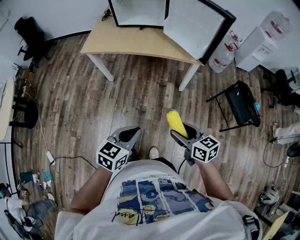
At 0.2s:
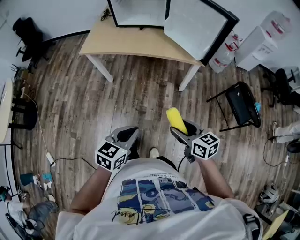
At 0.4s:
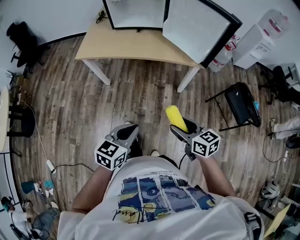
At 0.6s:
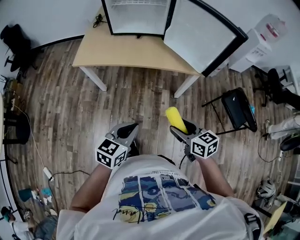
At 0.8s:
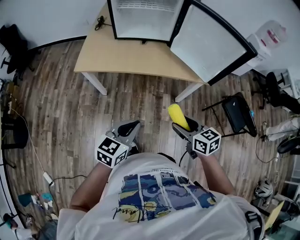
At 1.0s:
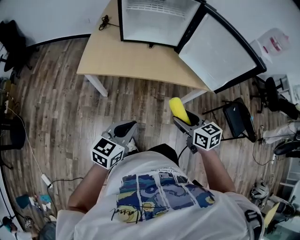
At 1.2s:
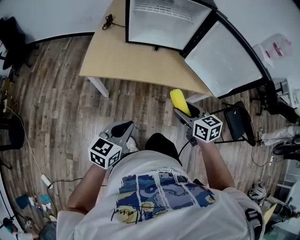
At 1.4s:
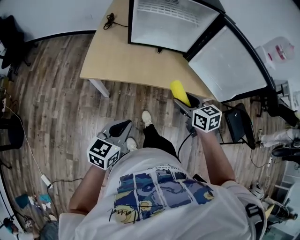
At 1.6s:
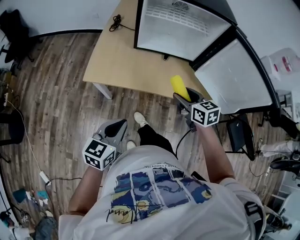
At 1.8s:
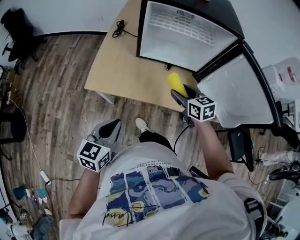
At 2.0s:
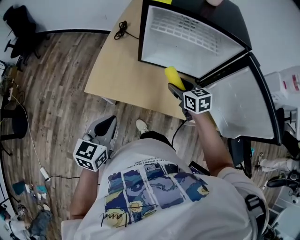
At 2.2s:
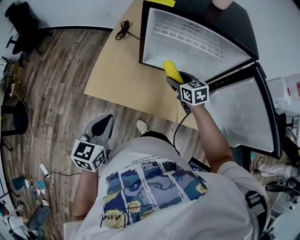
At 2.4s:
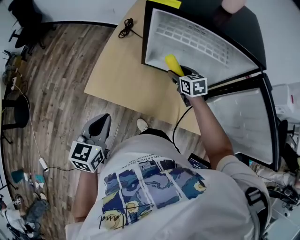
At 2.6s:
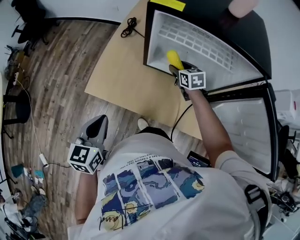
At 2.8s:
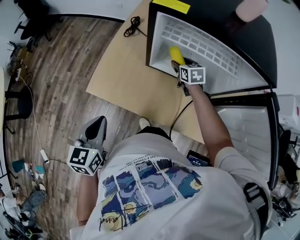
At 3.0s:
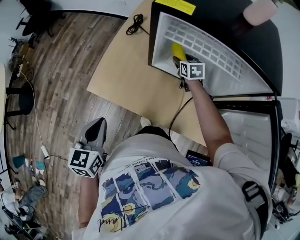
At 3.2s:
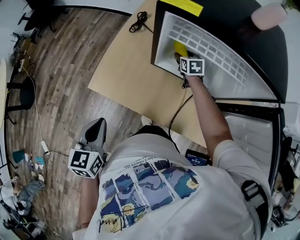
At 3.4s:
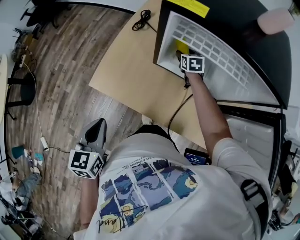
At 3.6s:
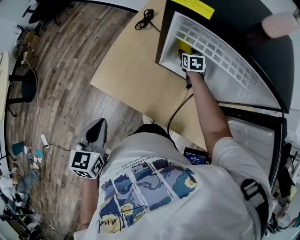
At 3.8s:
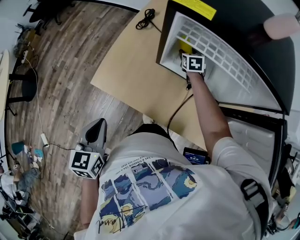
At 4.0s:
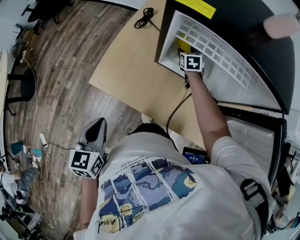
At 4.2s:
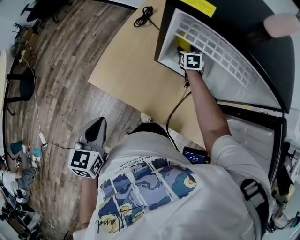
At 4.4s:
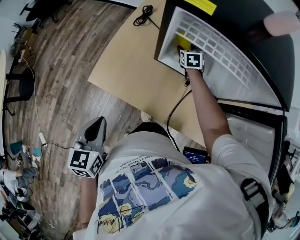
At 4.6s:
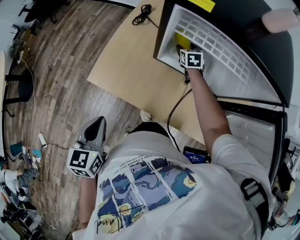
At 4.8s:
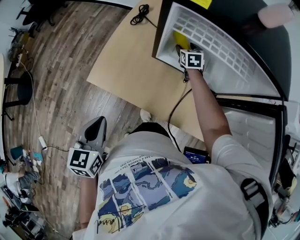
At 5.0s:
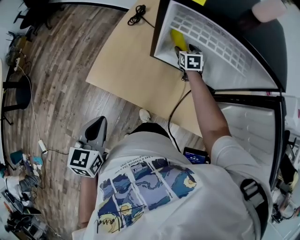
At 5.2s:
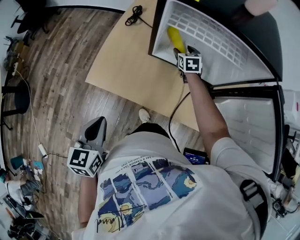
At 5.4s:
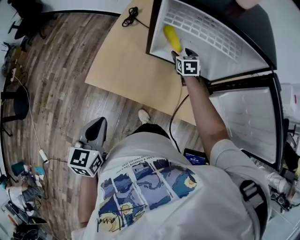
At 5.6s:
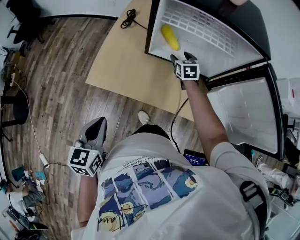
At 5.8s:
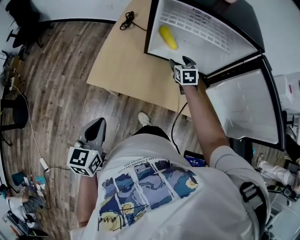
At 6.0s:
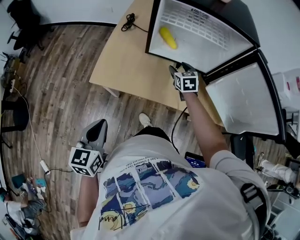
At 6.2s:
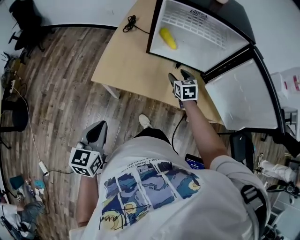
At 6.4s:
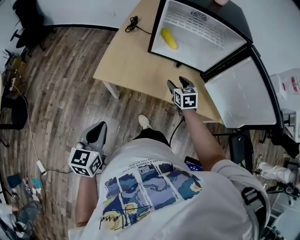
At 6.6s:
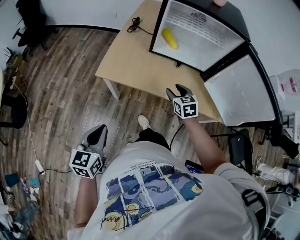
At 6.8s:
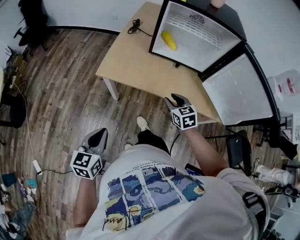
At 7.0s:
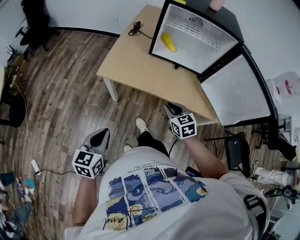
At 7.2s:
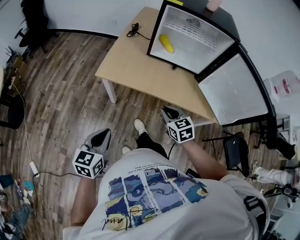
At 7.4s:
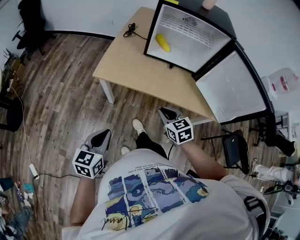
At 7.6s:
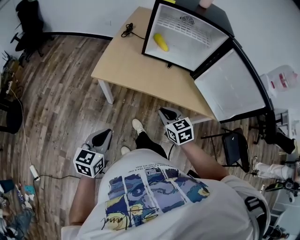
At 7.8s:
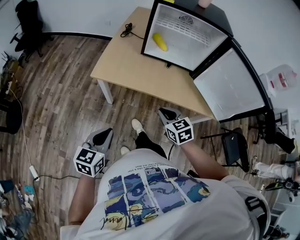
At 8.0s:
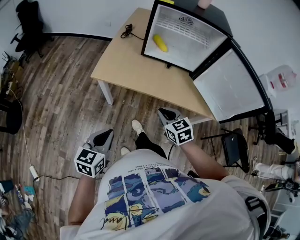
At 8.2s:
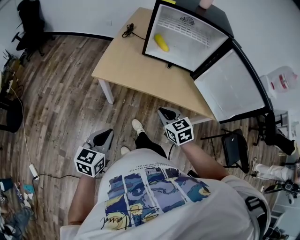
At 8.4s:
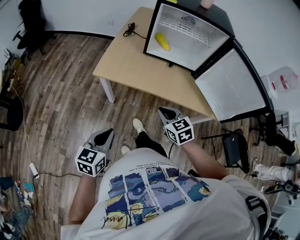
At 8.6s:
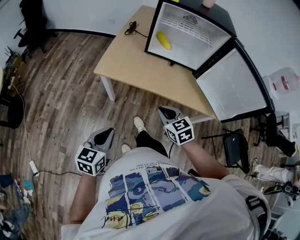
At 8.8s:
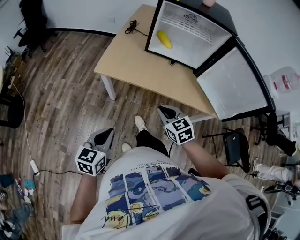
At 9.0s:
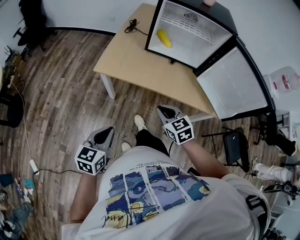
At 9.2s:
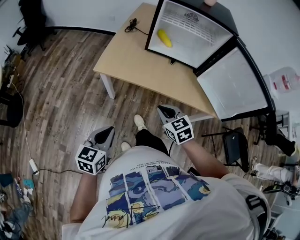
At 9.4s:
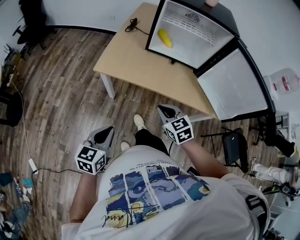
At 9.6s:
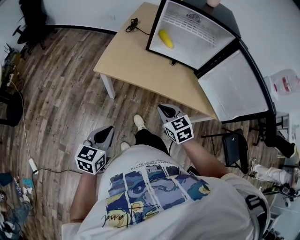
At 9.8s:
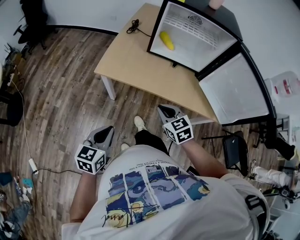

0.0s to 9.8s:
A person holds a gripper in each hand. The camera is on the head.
0.0s to 1.4s: Both grippers travel together forward and to the left, approximately 40 cm.
1.4s to 2.8s: The right gripper travels forward by some 40 cm; the left gripper goes approximately 20 cm forward, and swivels about 40 degrees.
2.8s to 4.2s: The right gripper goes roughly 10 cm forward and downward.
4.2s to 5.6s: The left gripper shifts about 5 cm backward. Meanwhile the right gripper moves backward and upward, some 15 cm.
5.6s to 7.0s: The right gripper moves backward, approximately 35 cm, and closes its fingers; the left gripper is displaced backward by about 20 cm.
7.0s to 8.4s: The right gripper goes about 5 cm backward.
8.4s to 9.8s: There are only small adjustments of the grippers.

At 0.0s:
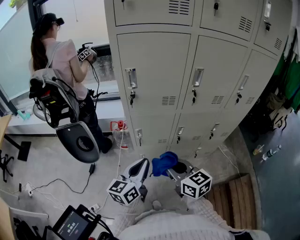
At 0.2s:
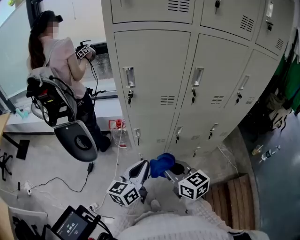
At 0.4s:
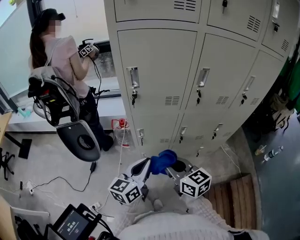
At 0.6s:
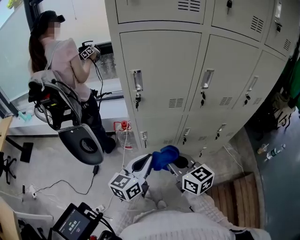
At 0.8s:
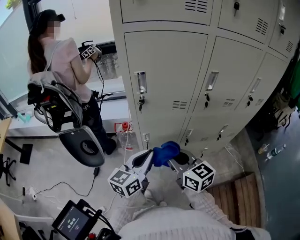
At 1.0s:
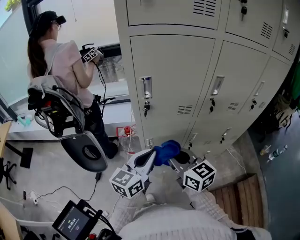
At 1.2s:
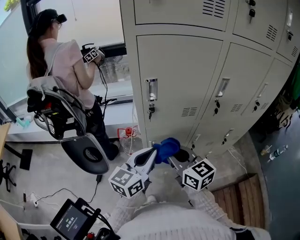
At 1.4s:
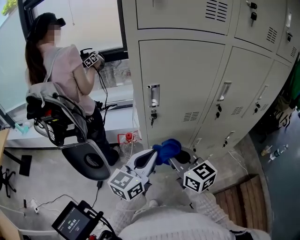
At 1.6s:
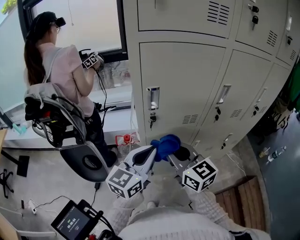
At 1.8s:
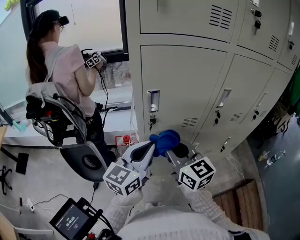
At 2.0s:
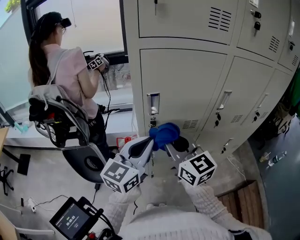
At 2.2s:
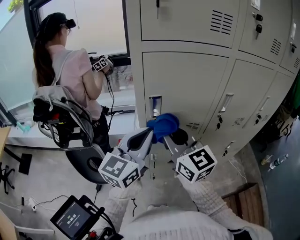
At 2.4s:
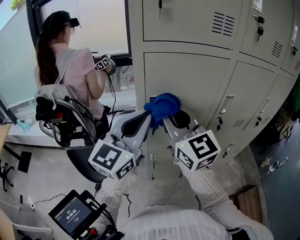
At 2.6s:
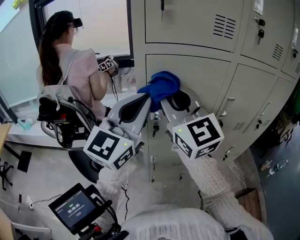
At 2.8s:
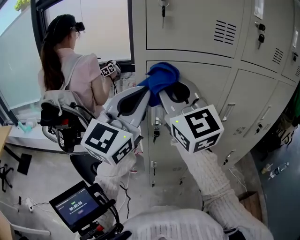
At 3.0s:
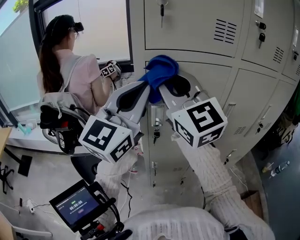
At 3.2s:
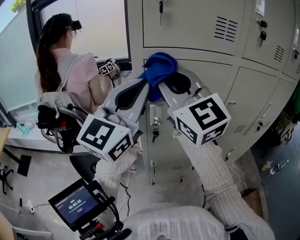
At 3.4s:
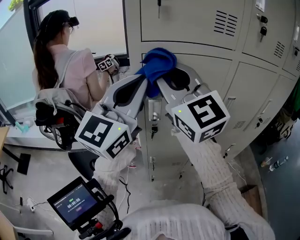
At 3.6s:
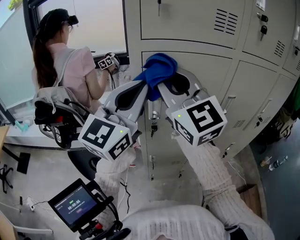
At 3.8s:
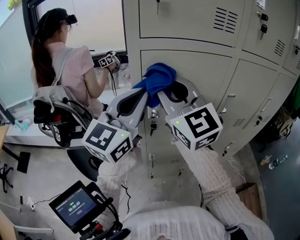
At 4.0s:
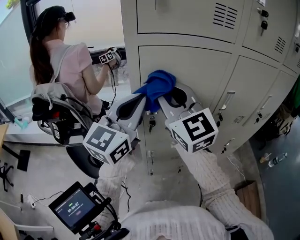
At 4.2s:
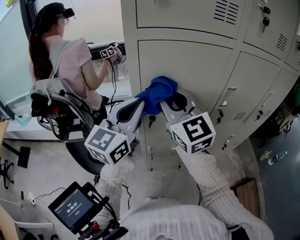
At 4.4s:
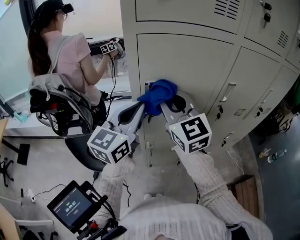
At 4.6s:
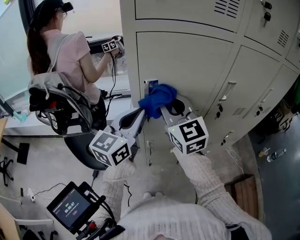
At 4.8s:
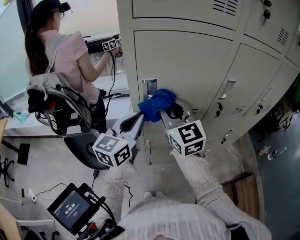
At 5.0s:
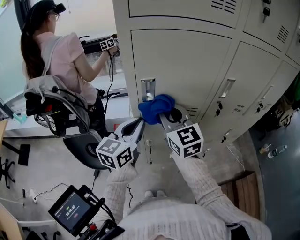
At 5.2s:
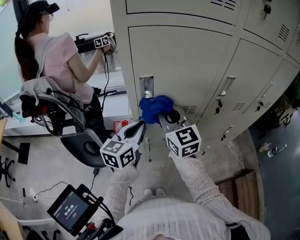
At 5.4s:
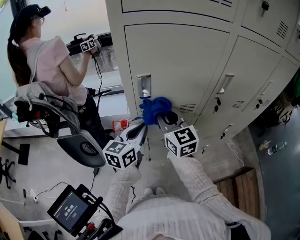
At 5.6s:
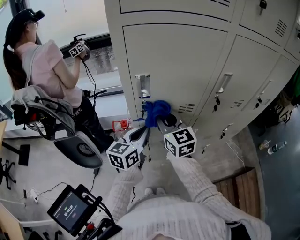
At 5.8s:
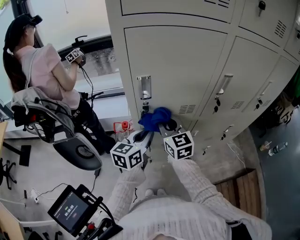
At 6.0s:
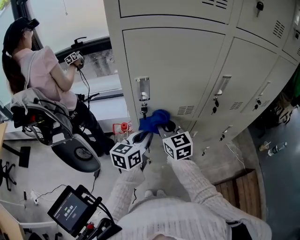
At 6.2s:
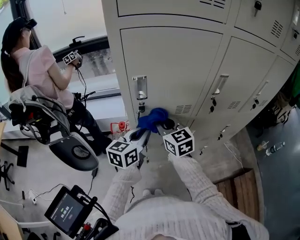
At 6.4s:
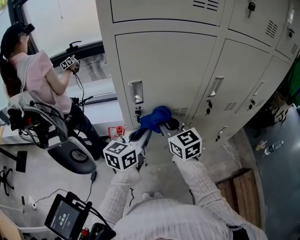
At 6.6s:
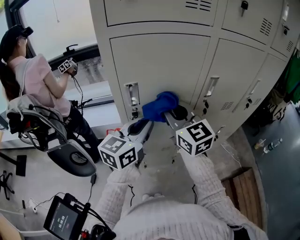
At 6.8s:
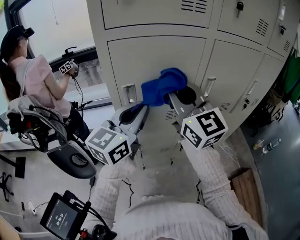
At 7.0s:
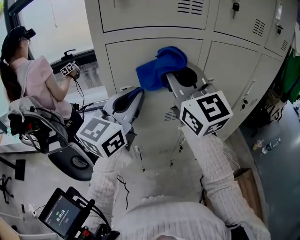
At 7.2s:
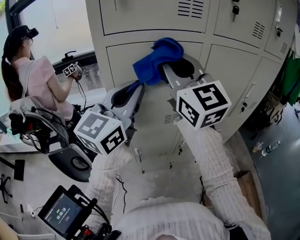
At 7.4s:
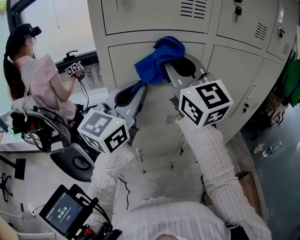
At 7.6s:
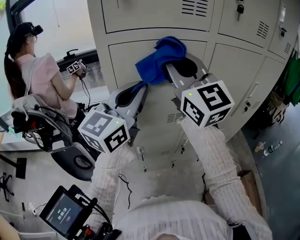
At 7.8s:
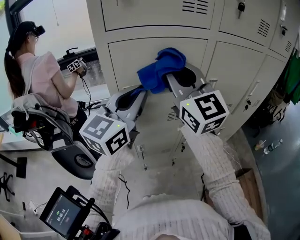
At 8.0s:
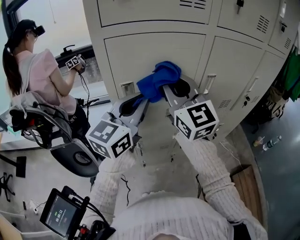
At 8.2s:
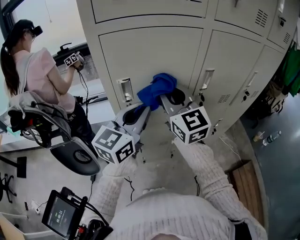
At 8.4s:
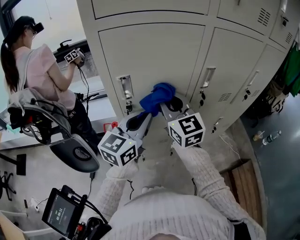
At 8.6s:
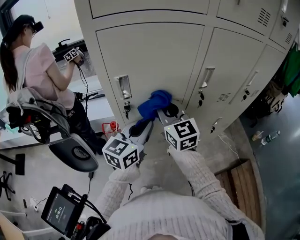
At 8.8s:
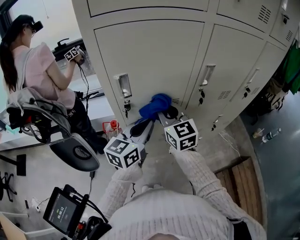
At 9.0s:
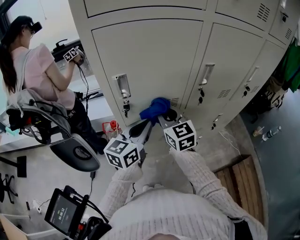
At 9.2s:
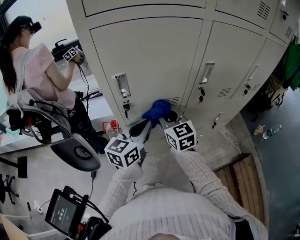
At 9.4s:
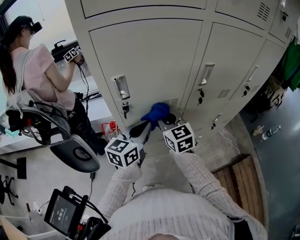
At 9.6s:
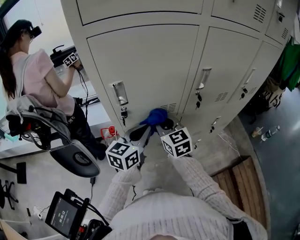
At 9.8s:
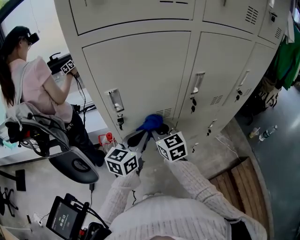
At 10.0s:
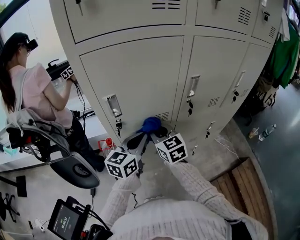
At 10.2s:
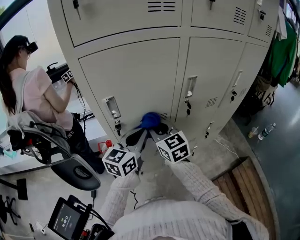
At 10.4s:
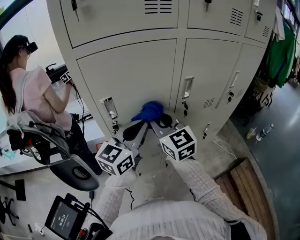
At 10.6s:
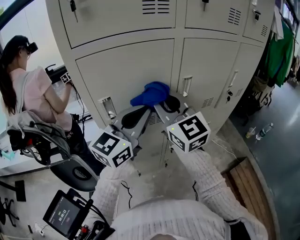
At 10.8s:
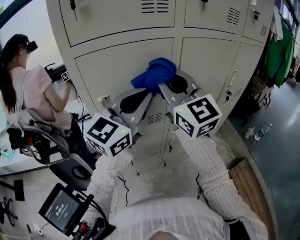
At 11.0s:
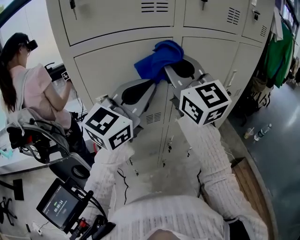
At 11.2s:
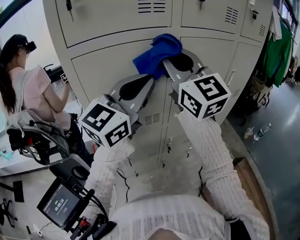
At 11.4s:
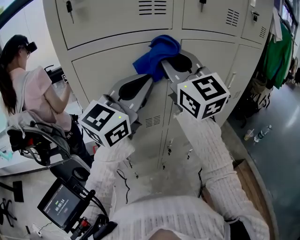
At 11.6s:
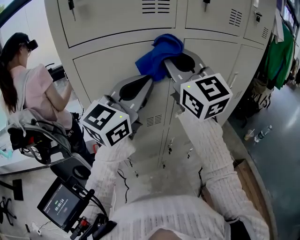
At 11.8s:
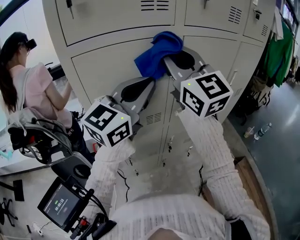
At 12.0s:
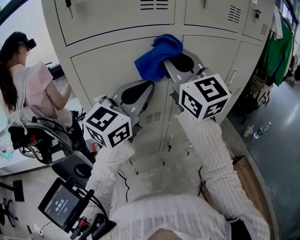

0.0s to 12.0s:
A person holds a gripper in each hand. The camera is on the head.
0.0s to 1.6s: The left gripper is displaced forward, upward and to the left by roughly 20 cm, and rotates some 20 degrees. Meanwhile the right gripper goes approximately 20 cm forward, to the left and upward.
1.6s to 3.0s: The two grippers go some 25 cm upward. The right gripper rotates some 40 degrees; the left gripper rotates roughly 30 degrees.
3.0s to 4.4s: Both grippers travel together downward, approximately 15 cm. The left gripper rotates roughly 20 degrees.
4.4s to 6.0s: Both grippers move downward, approximately 20 cm. The right gripper changes its angle by about 20 degrees. The left gripper rotates roughly 30 degrees.
6.0s to 7.6s: The two grippers go roughly 30 cm upward. The right gripper swivels some 30 degrees, while the left gripper changes its angle by about 30 degrees.
7.6s to 9.0s: Both grippers move downward, approximately 25 cm. The right gripper rotates roughly 30 degrees, while the left gripper rotates some 20 degrees.
9.0s to 10.4s: Both grippers travel together upward, approximately 10 cm.
10.4s to 12.0s: The right gripper goes roughly 20 cm upward, and rotates approximately 20 degrees, while the left gripper heads upward, covering some 10 cm.

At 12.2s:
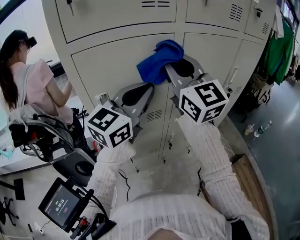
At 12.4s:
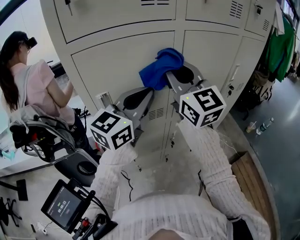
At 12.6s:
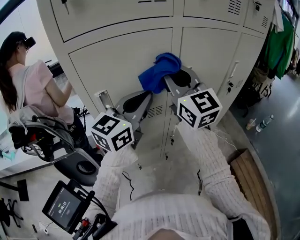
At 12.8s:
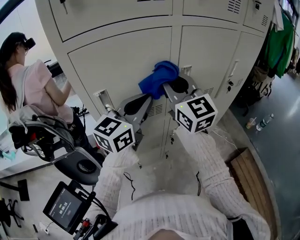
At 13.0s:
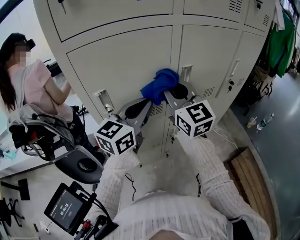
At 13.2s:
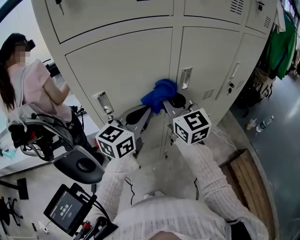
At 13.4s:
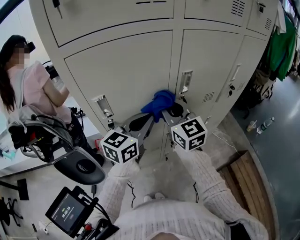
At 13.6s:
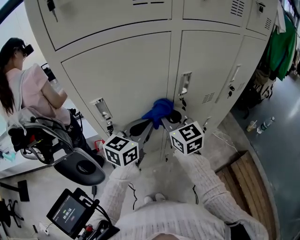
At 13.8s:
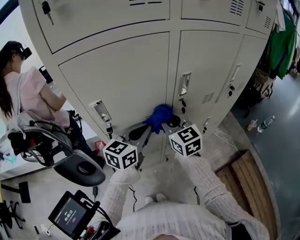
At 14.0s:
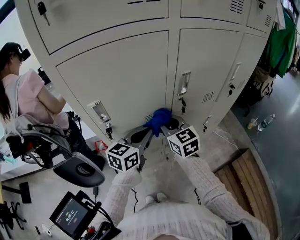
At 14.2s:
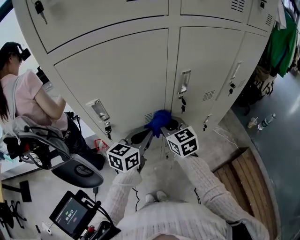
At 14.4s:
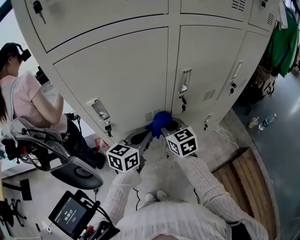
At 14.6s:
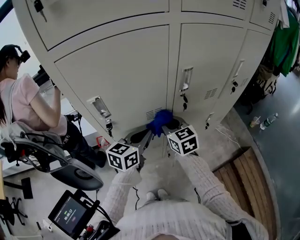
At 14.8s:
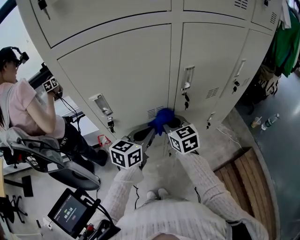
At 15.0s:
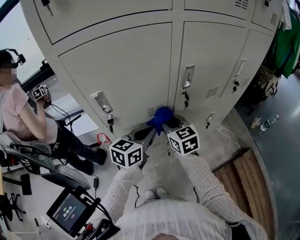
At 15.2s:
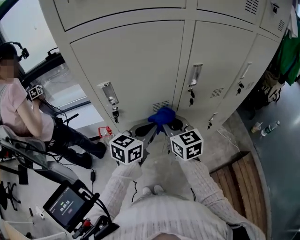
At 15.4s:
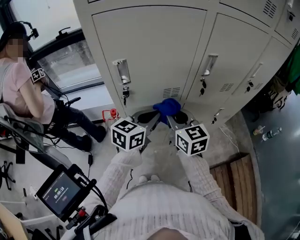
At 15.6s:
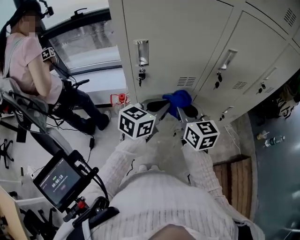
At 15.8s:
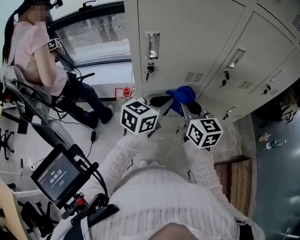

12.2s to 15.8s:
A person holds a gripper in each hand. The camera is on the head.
12.2s to 14.0s: Both grippers move downward, approximately 25 cm. The left gripper swivels some 30 degrees. The right gripper angles its fingers downward, by approximately 30 degrees.
14.0s to 15.8s: The left gripper shifts about 5 cm backward; the right gripper is displaced backward by approximately 10 cm.
